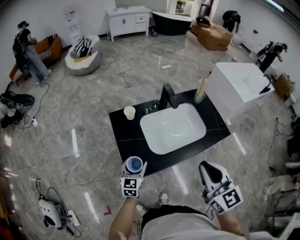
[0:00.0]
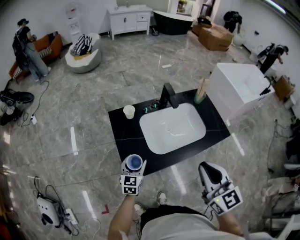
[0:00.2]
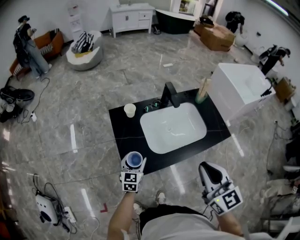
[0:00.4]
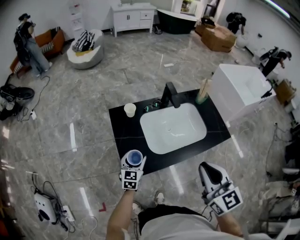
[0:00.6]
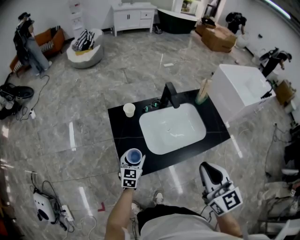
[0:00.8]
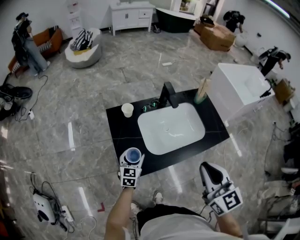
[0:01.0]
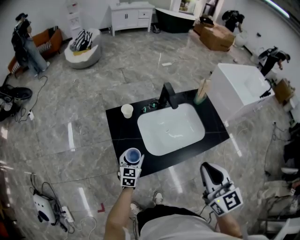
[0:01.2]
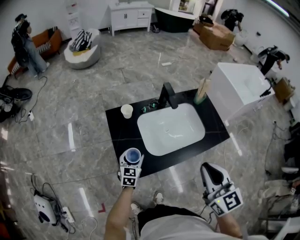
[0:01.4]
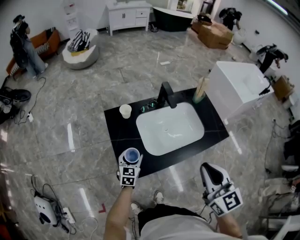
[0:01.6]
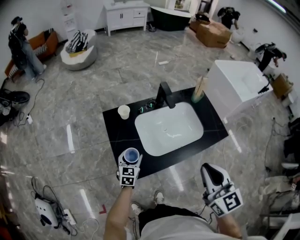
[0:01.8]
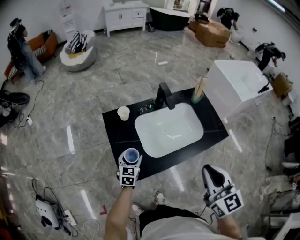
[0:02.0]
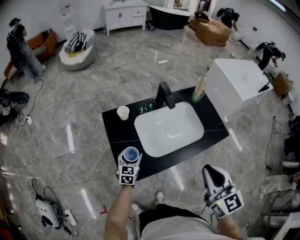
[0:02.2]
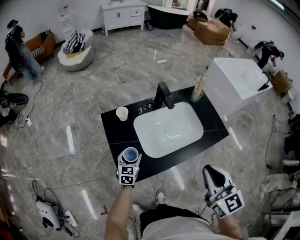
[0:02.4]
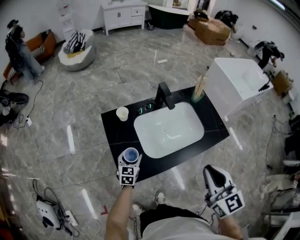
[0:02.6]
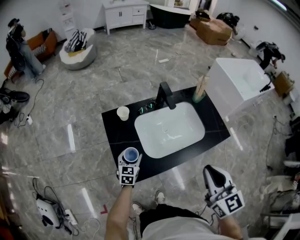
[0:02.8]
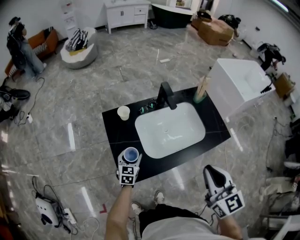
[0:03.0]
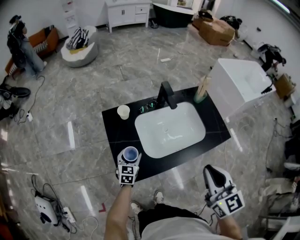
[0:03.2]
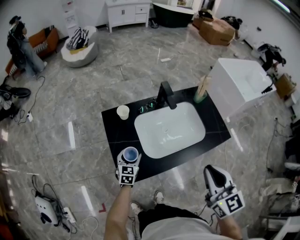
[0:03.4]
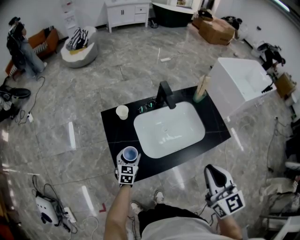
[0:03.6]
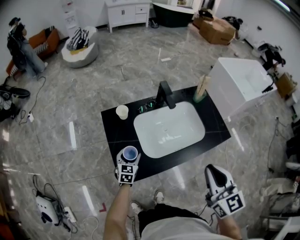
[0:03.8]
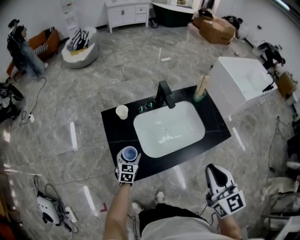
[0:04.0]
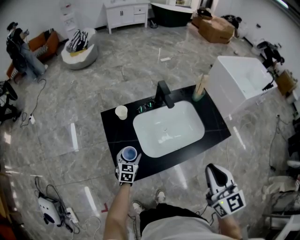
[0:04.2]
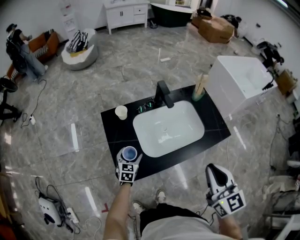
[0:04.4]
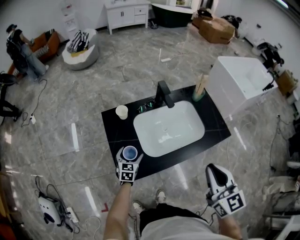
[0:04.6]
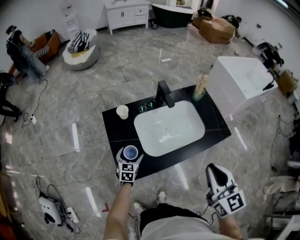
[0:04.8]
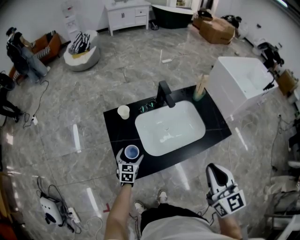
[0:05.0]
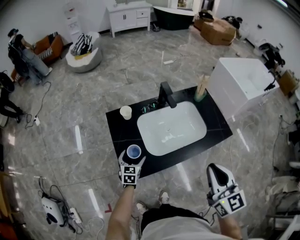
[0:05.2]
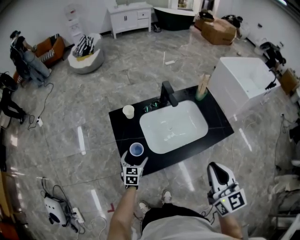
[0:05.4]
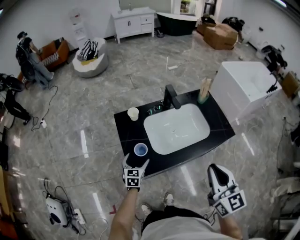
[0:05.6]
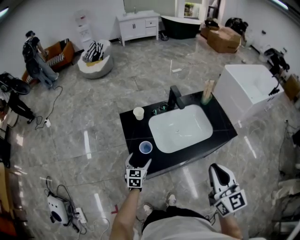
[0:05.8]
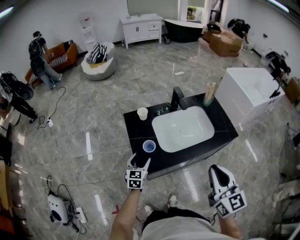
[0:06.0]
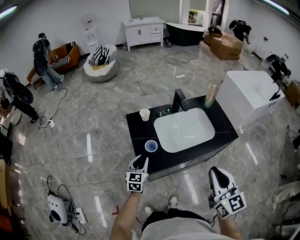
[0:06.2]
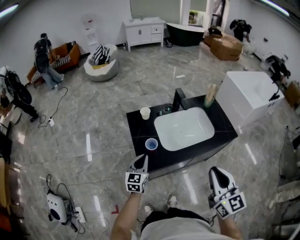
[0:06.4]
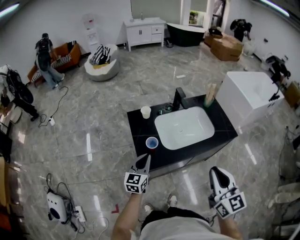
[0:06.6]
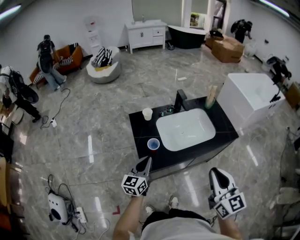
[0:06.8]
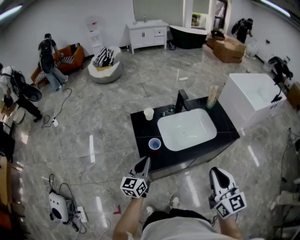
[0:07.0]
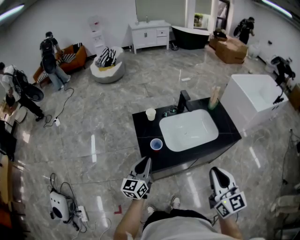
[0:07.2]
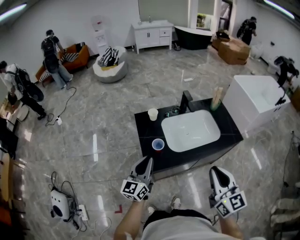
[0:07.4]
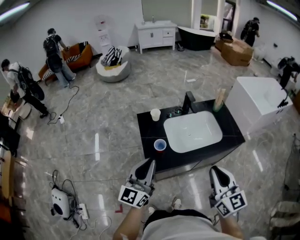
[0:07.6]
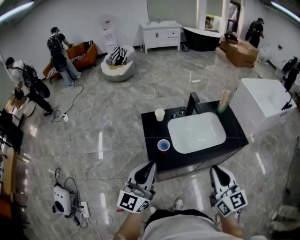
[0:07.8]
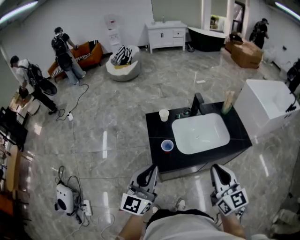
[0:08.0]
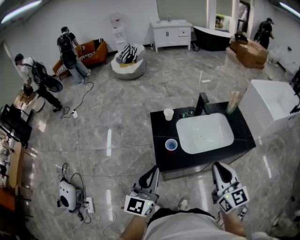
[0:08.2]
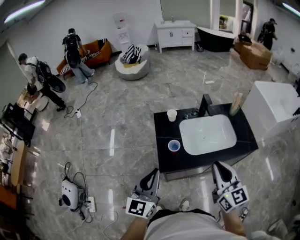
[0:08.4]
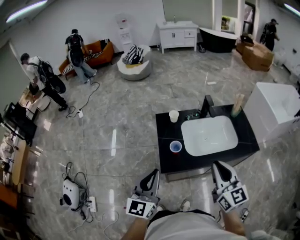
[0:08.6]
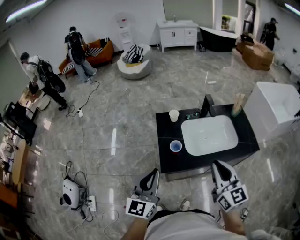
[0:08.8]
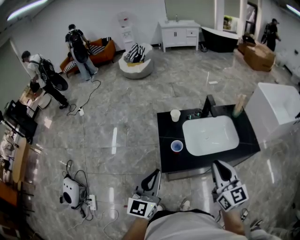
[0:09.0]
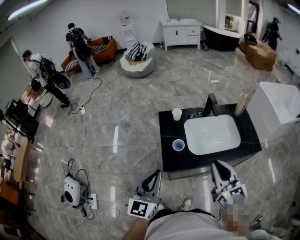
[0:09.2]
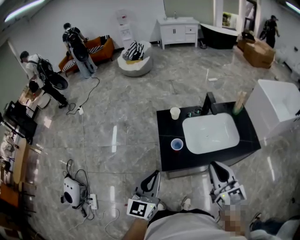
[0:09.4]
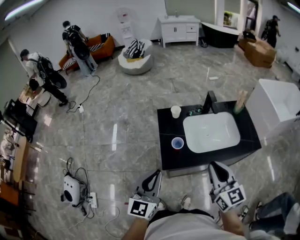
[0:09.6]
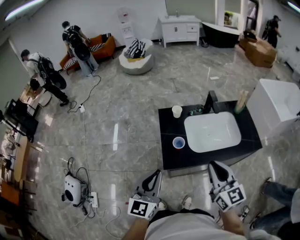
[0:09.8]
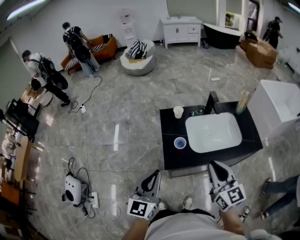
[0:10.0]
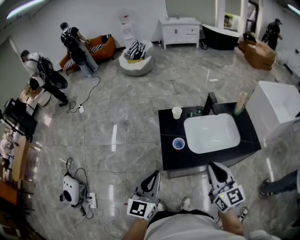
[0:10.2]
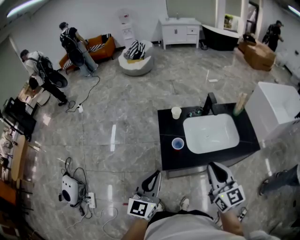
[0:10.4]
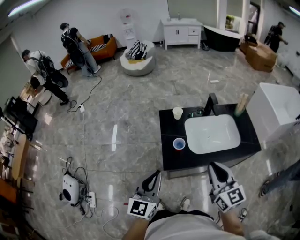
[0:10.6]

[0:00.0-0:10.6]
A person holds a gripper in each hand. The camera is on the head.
0:00.0 to 0:01.6: The left gripper is displaced downward and forward by approximately 10 cm.
0:01.6 to 0:04.6: The grippers make only small movements.
0:04.6 to 0:06.0: The left gripper is displaced upward and backward by about 10 cm, while the right gripper travels backward by approximately 5 cm.
0:06.0 to 0:07.6: The left gripper is displaced upward and backward by about 25 cm, tilts its fingers roughly 40 degrees upward, and closes its fingers.
0:07.6 to 0:09.0: The left gripper shifts by some 5 cm, while the right gripper travels forward by some 5 cm.
0:09.0 to 0:10.6: The grippers move only a little.

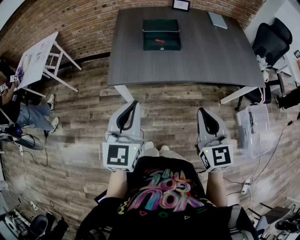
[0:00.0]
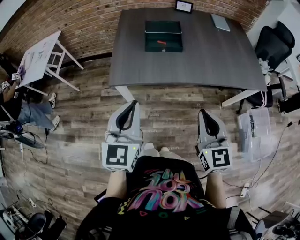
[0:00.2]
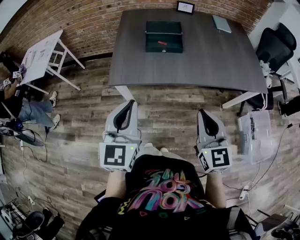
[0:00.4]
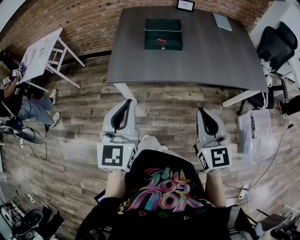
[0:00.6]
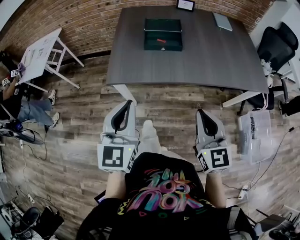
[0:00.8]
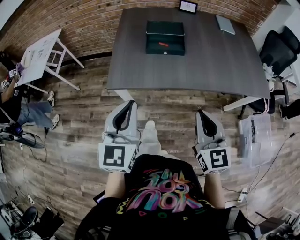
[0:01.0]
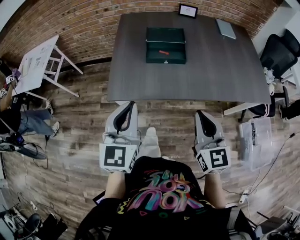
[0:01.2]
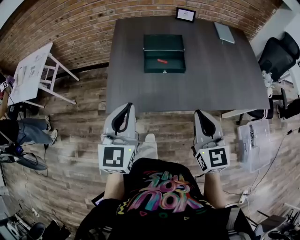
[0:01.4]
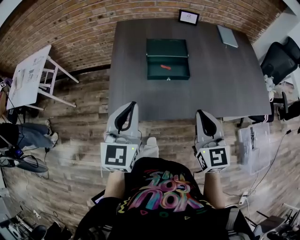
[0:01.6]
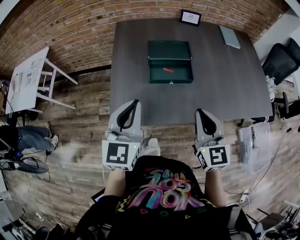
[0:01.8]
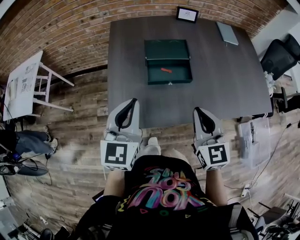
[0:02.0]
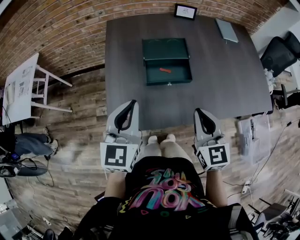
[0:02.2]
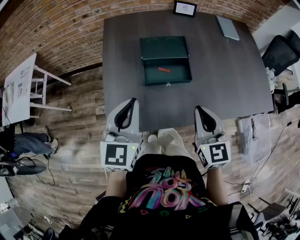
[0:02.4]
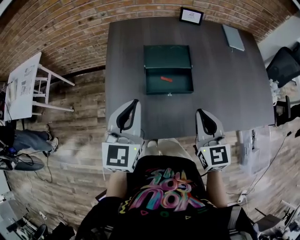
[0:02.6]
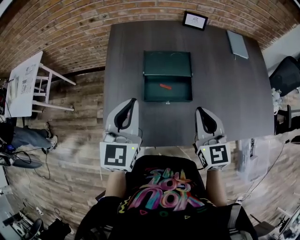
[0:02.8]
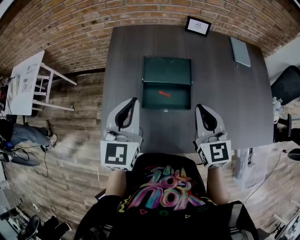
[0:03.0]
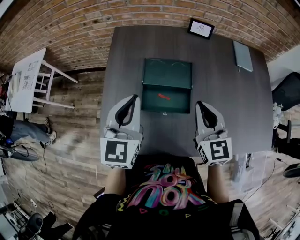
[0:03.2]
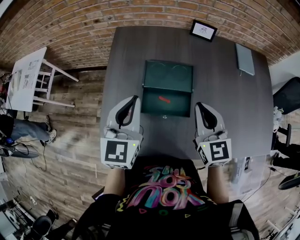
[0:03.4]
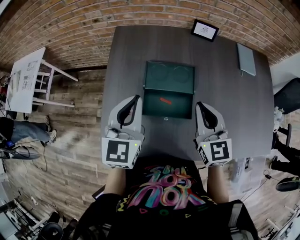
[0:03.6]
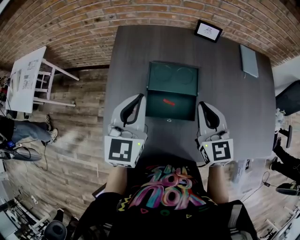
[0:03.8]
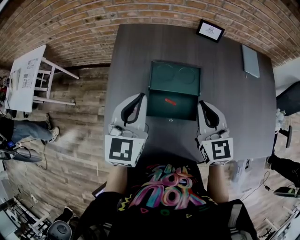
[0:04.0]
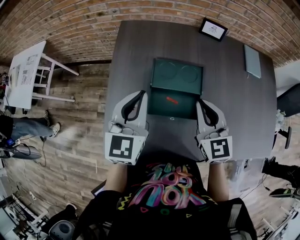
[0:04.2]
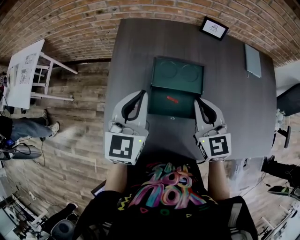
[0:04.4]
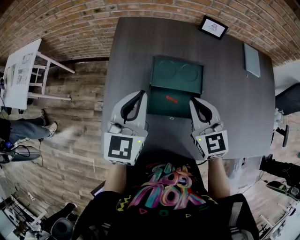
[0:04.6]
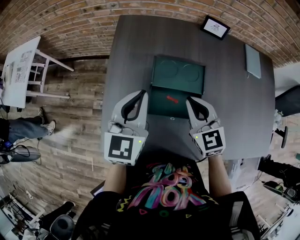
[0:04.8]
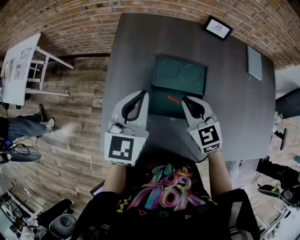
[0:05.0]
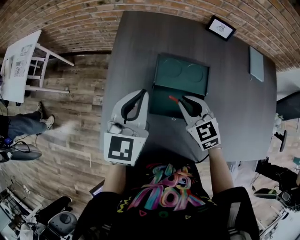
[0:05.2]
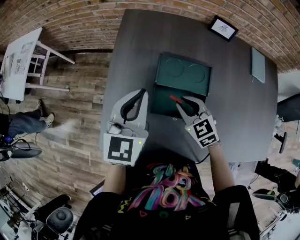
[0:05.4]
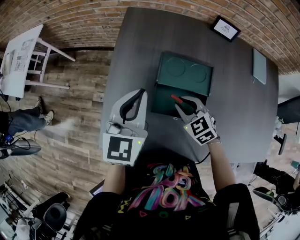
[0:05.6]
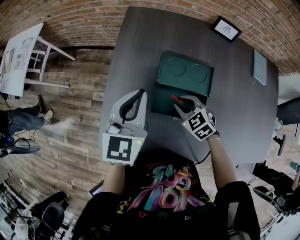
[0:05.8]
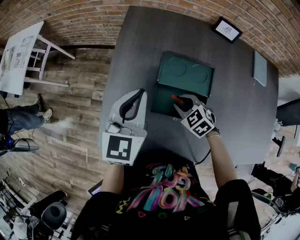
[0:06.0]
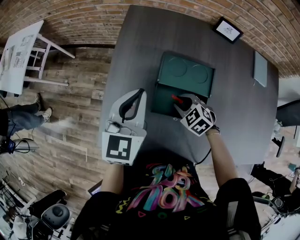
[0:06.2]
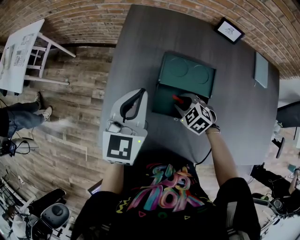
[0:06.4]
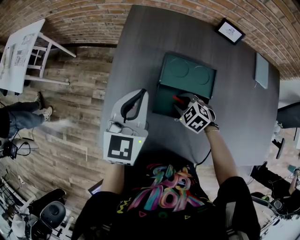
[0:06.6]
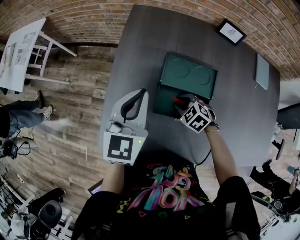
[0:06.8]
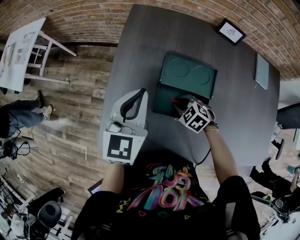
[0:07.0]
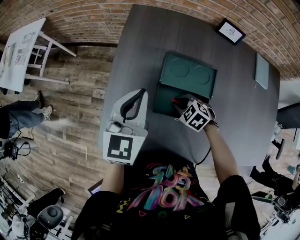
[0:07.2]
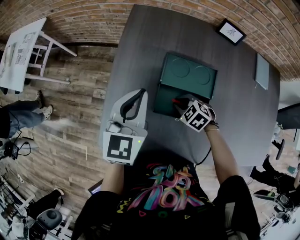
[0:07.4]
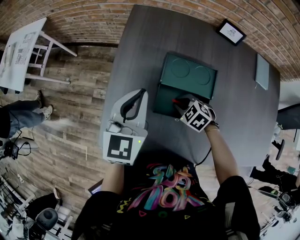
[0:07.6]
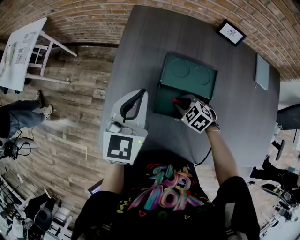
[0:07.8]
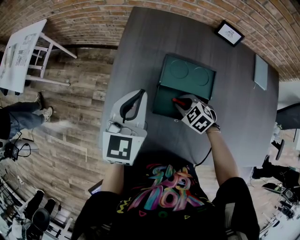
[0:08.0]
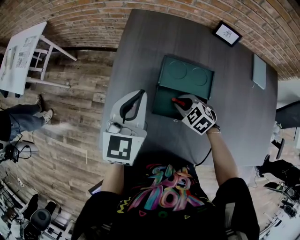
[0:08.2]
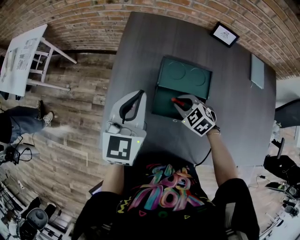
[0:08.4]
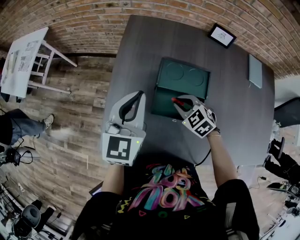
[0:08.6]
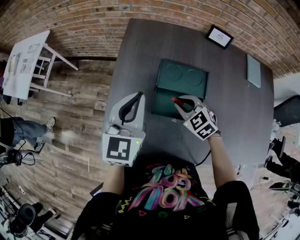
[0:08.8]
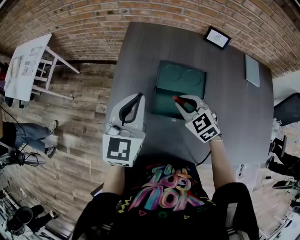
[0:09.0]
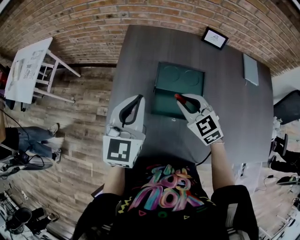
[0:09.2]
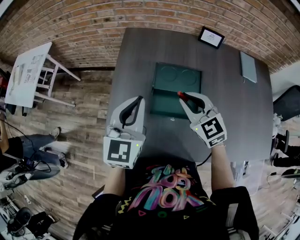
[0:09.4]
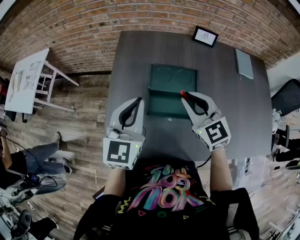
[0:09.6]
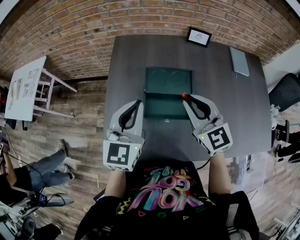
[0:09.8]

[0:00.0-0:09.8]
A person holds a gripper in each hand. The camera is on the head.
0:00.0 to 0:01.4: Both grippers move forward, approximately 15 cm.
0:01.4 to 0:02.8: The grippers both shift forward by roughly 20 cm.
0:02.8 to 0:04.2: The two grippers go approximately 10 cm forward.
0:04.2 to 0:05.6: The right gripper is displaced downward and to the left by about 20 cm, and rotates roughly 40 degrees.
0:05.6 to 0:07.0: The right gripper shifts approximately 10 cm downward, and swivels roughly 20 degrees.
0:07.0 to 0:08.4: The right gripper shifts roughly 5 cm upward.
0:08.4 to 0:09.8: The right gripper shifts approximately 25 cm upward, and angles its fingers upward, by roughly 40 degrees. The left gripper travels backward and upward by approximately 5 cm.

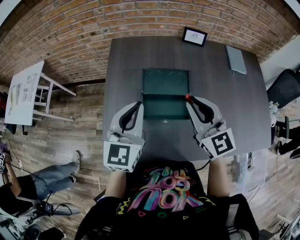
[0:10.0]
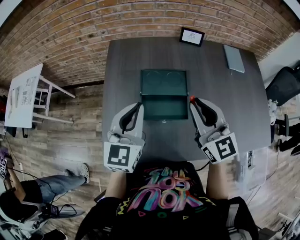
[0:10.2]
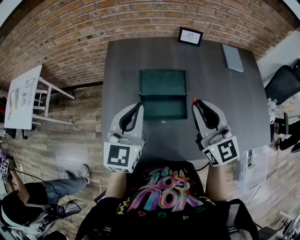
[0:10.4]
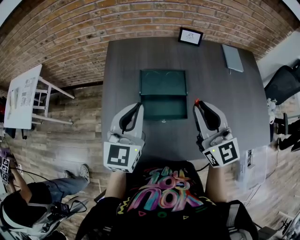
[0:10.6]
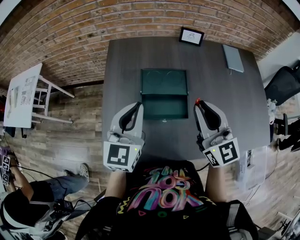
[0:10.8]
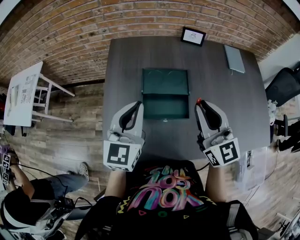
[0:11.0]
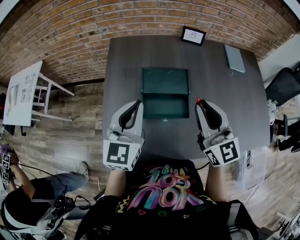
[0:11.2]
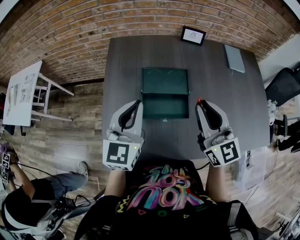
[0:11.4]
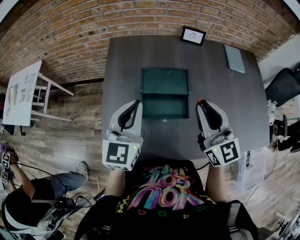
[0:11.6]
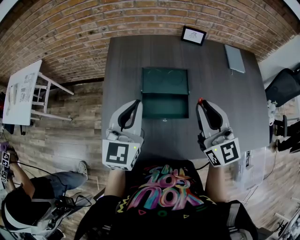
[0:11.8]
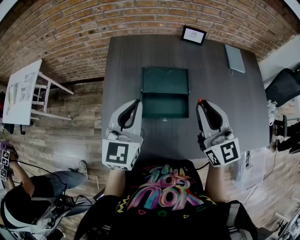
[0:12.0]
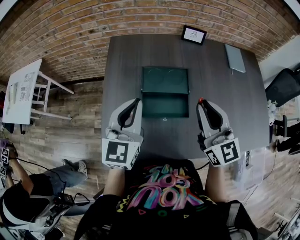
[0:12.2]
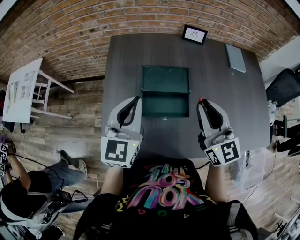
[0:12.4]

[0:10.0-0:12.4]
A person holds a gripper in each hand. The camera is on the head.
0:10.0 to 0:11.2: The grippers make only small movements.
0:11.2 to 0:12.4: Both grippers stay put.

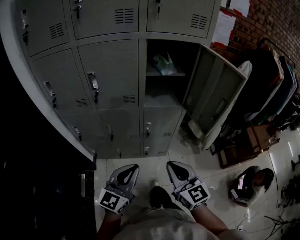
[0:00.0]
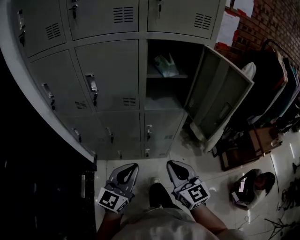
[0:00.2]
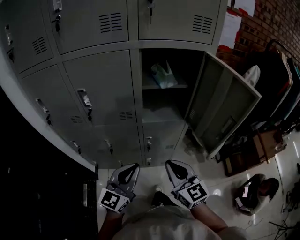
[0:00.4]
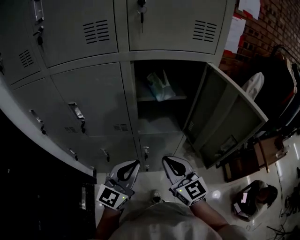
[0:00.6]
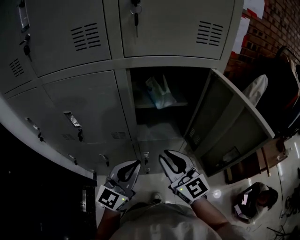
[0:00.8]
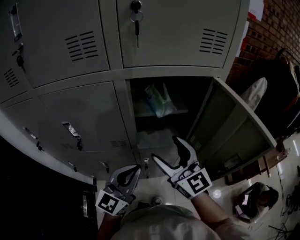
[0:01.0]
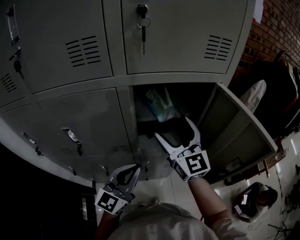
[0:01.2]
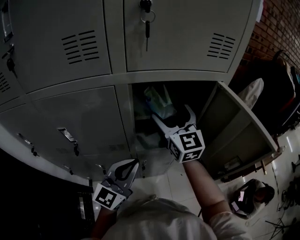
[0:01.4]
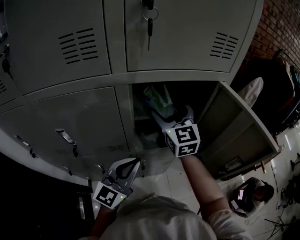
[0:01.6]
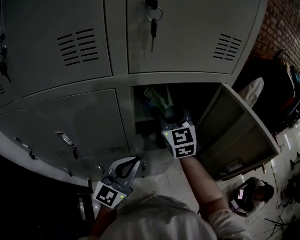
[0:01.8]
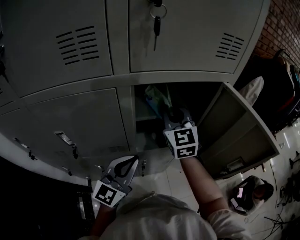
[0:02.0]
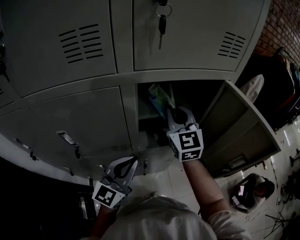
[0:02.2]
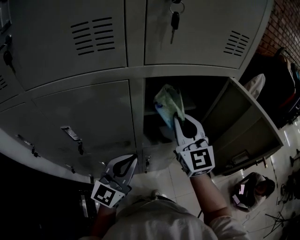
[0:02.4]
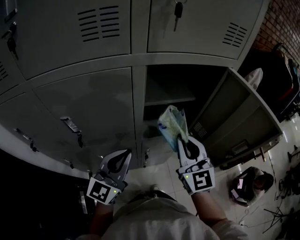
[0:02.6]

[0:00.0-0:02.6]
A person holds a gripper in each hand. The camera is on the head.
0:00.0 to 0:01.2: Both grippers move forward, roughly 30 cm. The right gripper opens up.
0:01.2 to 0:02.6: The left gripper travels to the left by about 5 cm; the right gripper moves backward, some 5 cm, and closes.
